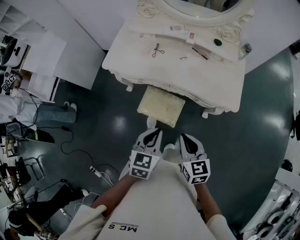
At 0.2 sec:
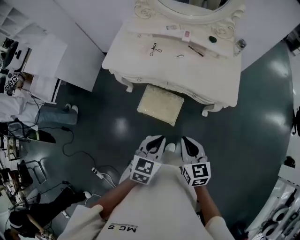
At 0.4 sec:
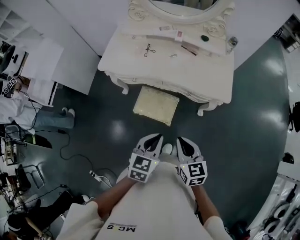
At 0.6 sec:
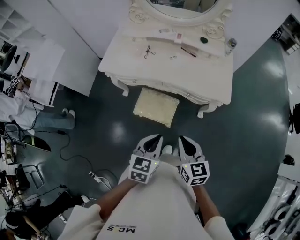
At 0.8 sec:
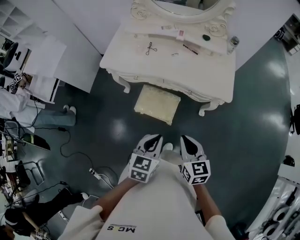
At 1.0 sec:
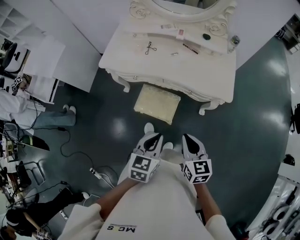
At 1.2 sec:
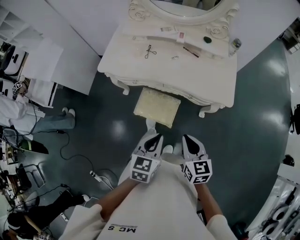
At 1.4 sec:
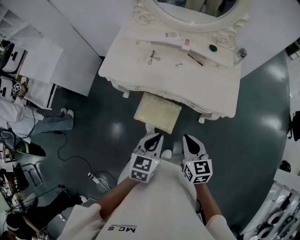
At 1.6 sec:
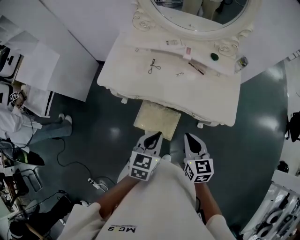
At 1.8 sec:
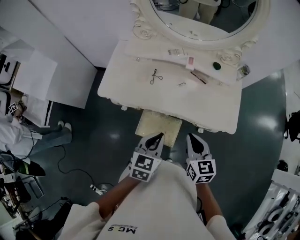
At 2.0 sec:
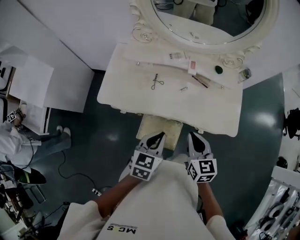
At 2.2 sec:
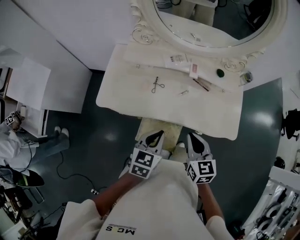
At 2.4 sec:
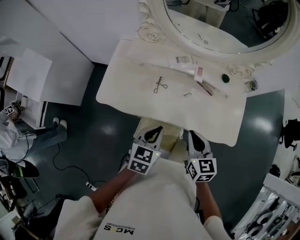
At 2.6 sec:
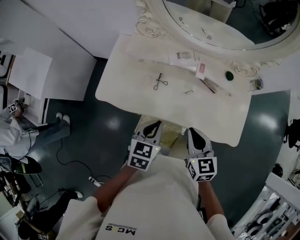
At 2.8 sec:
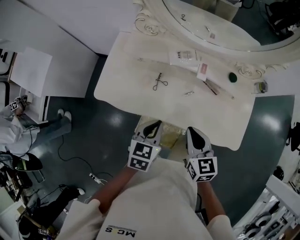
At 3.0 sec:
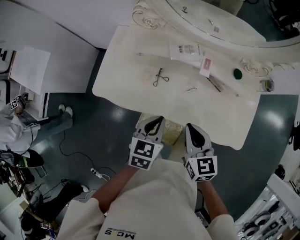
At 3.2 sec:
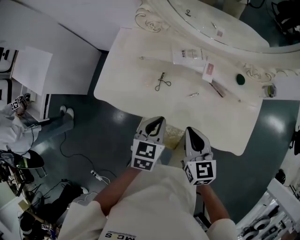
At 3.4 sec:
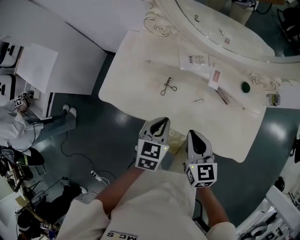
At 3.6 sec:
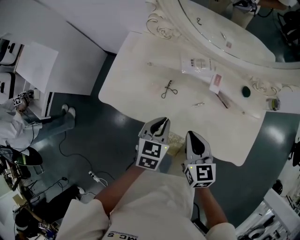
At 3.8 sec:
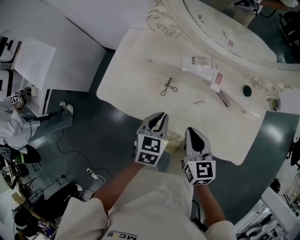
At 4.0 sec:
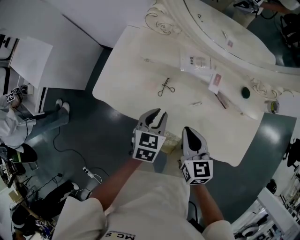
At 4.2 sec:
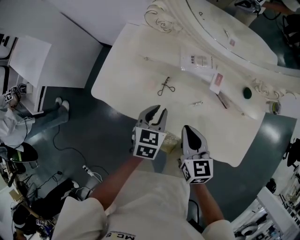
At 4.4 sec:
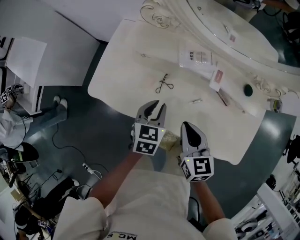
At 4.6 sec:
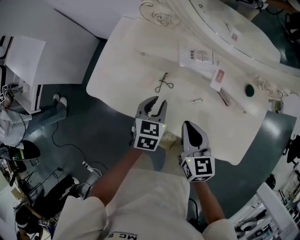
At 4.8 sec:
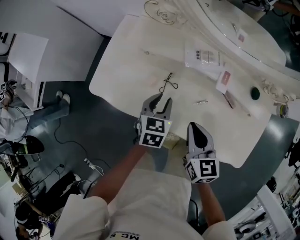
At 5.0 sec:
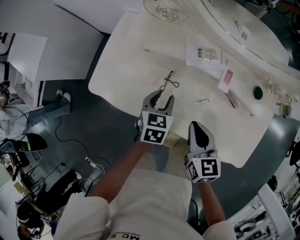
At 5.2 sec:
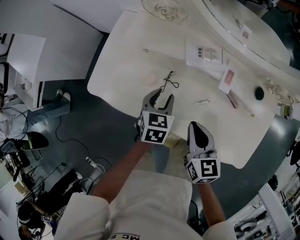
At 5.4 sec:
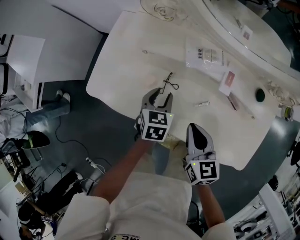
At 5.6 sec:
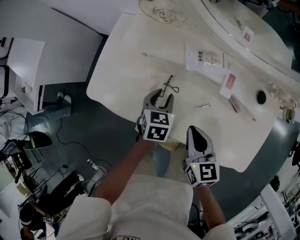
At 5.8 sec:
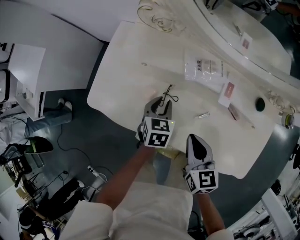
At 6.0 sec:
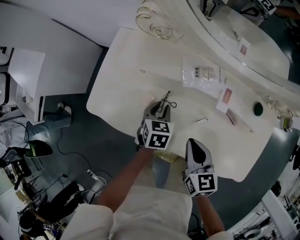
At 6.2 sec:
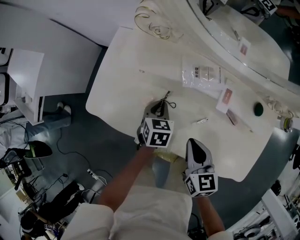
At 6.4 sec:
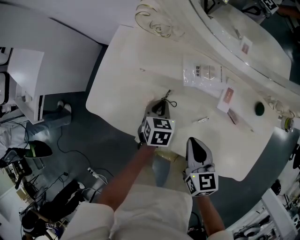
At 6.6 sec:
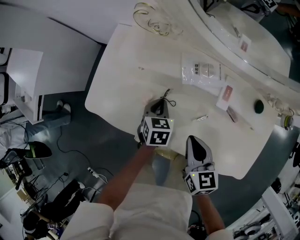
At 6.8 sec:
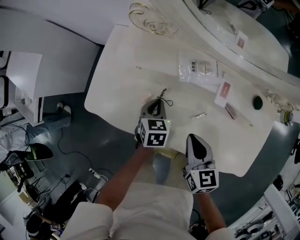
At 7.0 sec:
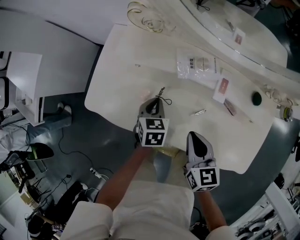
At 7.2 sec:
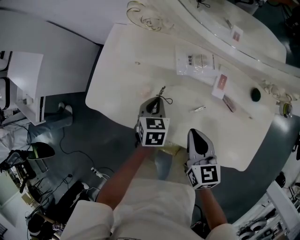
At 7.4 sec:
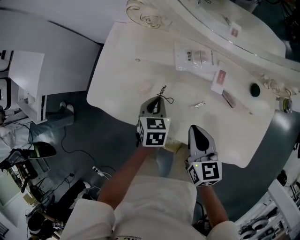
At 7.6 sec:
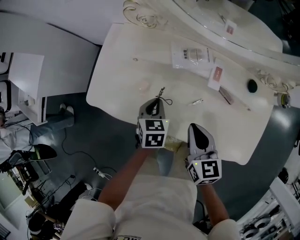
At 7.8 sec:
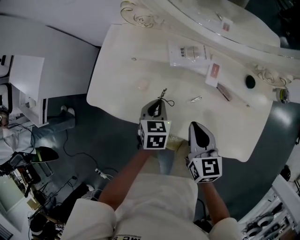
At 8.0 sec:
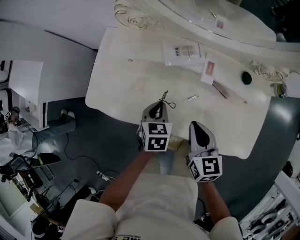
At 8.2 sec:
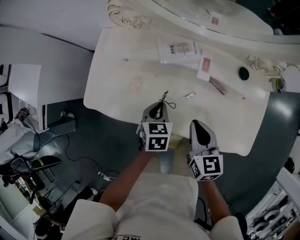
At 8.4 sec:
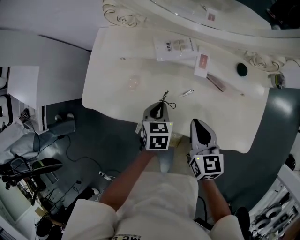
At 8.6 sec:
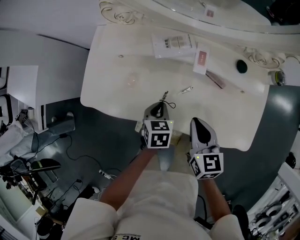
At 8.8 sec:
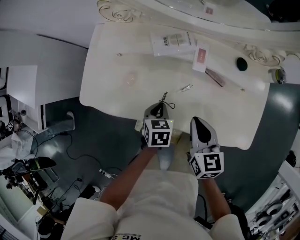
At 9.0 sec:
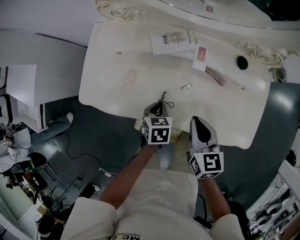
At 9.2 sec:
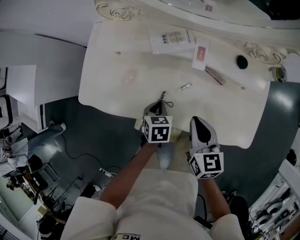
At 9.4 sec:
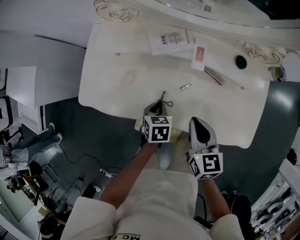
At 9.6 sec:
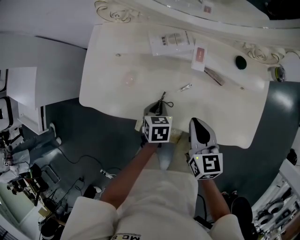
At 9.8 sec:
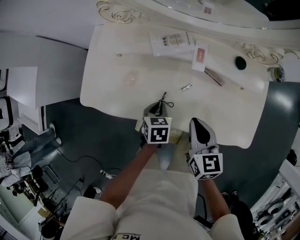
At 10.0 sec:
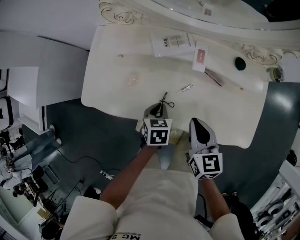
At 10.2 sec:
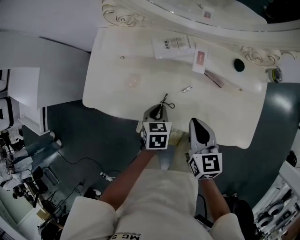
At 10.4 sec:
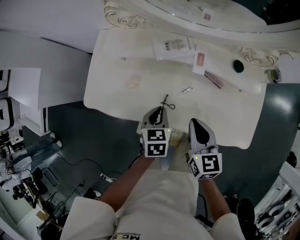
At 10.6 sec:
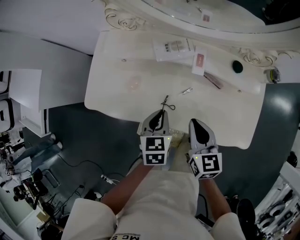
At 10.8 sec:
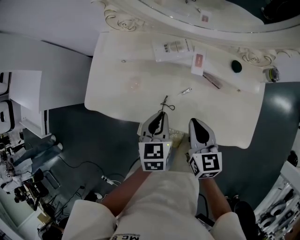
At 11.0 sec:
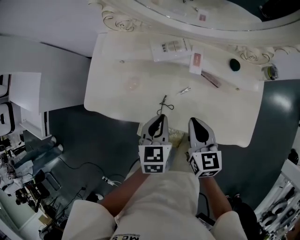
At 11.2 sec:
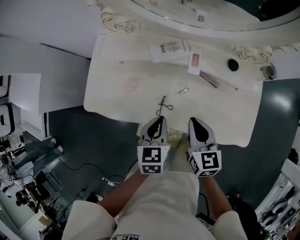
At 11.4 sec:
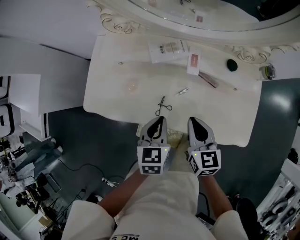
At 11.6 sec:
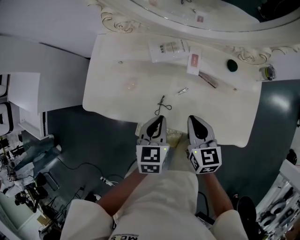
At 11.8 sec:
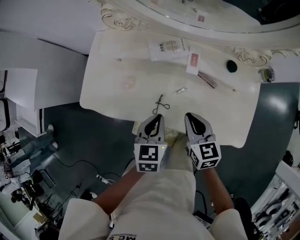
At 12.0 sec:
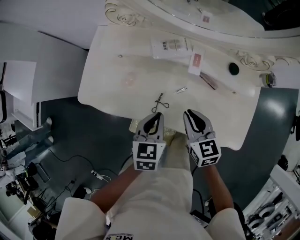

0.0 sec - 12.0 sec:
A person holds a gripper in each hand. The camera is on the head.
0.0 sec - 1.6 sec: Both grippers travel together forward, about 10 cm.
1.6 sec - 3.0 sec: Both grippers move forward, approximately 20 cm.
3.0 sec - 4.4 sec: The left gripper shifts roughly 10 cm forward and downward; the right gripper is displaced forward by some 5 cm.
4.4 sec - 6.0 sec: The right gripper moves roughly 5 cm. The left gripper travels downward and forward by roughly 10 cm.
6.0 sec - 7.6 sec: The left gripper changes place by some 5 cm.
7.6 sec - 9.0 sec: The left gripper shifts roughly 10 cm backward and to the right, while the right gripper shifts by about 5 cm.
9.0 sec - 10.4 sec: The left gripper goes some 5 cm upward.
10.4 sec - 12.0 sec: The left gripper shifts roughly 5 cm upward.

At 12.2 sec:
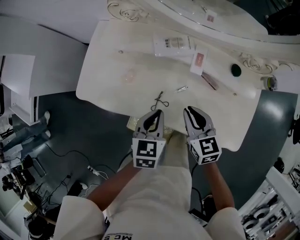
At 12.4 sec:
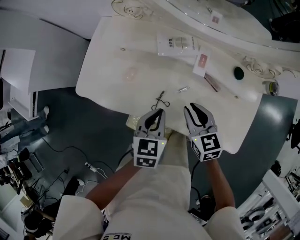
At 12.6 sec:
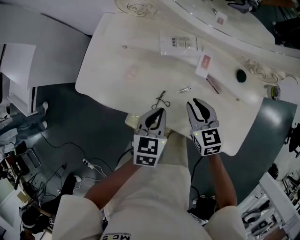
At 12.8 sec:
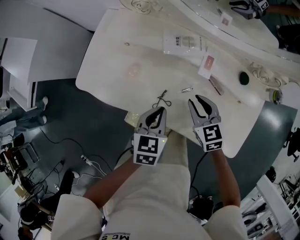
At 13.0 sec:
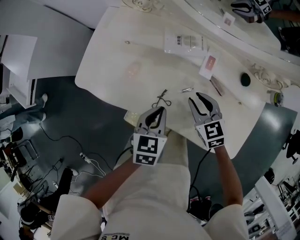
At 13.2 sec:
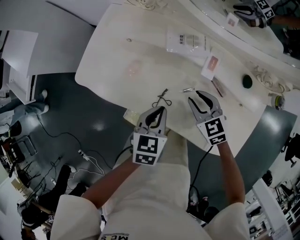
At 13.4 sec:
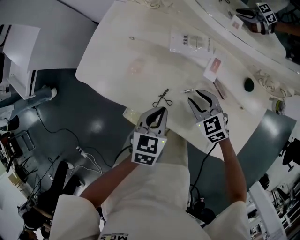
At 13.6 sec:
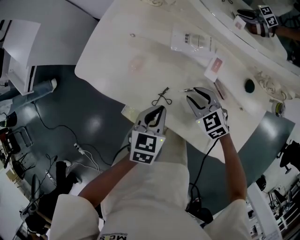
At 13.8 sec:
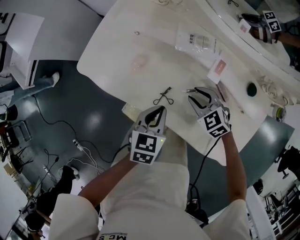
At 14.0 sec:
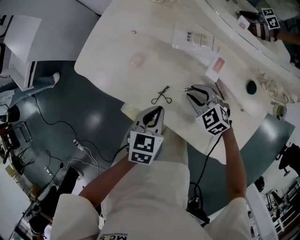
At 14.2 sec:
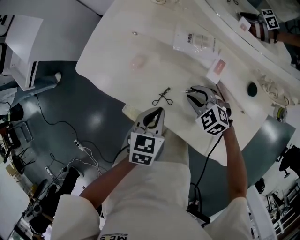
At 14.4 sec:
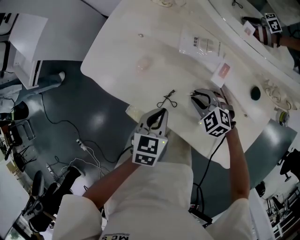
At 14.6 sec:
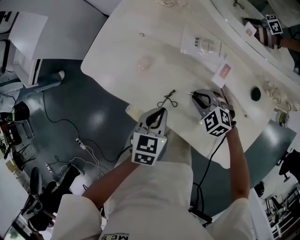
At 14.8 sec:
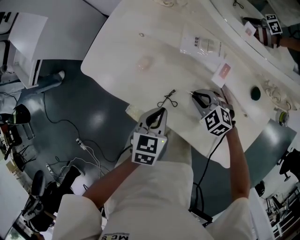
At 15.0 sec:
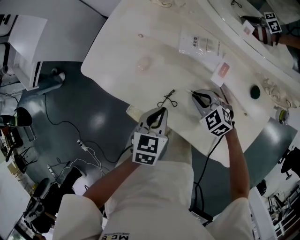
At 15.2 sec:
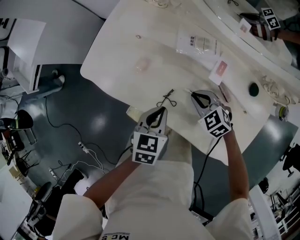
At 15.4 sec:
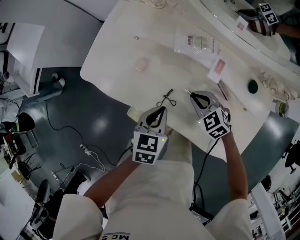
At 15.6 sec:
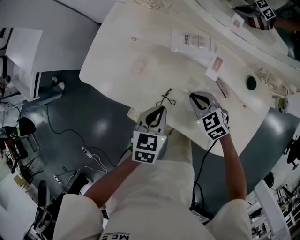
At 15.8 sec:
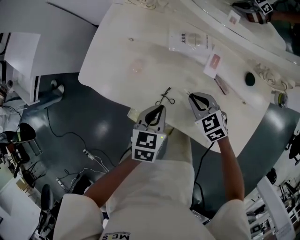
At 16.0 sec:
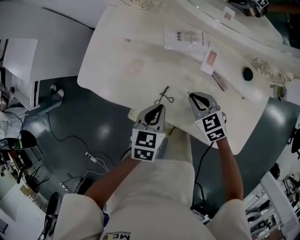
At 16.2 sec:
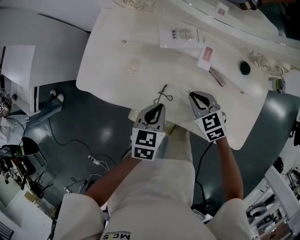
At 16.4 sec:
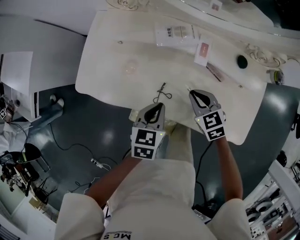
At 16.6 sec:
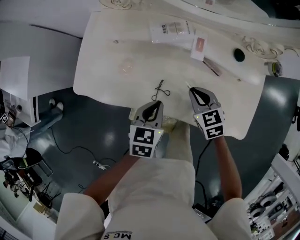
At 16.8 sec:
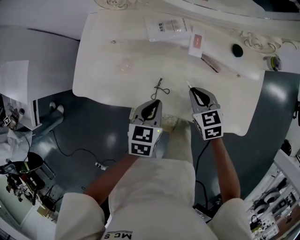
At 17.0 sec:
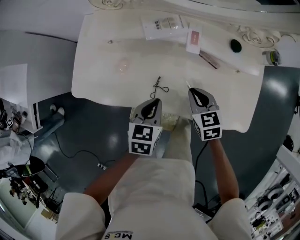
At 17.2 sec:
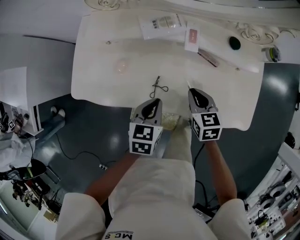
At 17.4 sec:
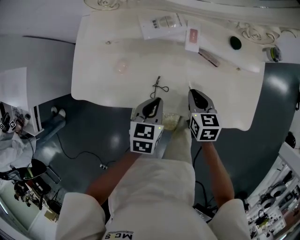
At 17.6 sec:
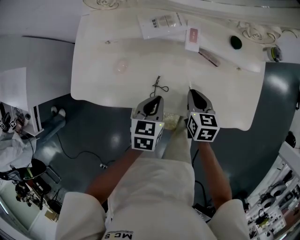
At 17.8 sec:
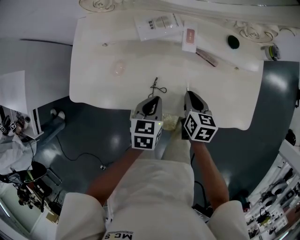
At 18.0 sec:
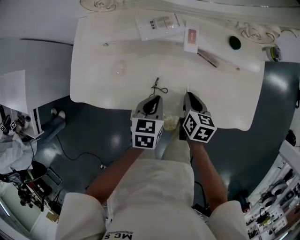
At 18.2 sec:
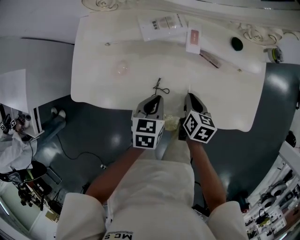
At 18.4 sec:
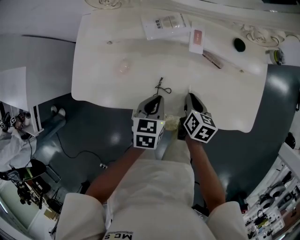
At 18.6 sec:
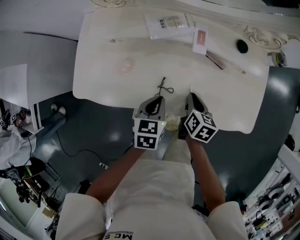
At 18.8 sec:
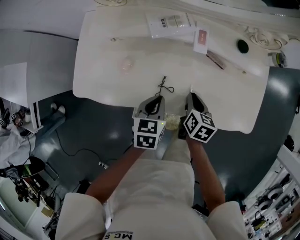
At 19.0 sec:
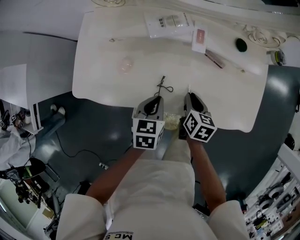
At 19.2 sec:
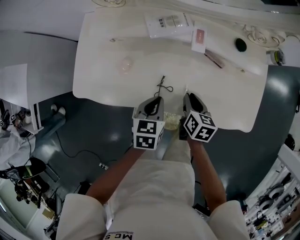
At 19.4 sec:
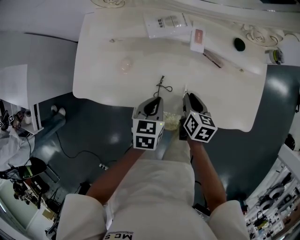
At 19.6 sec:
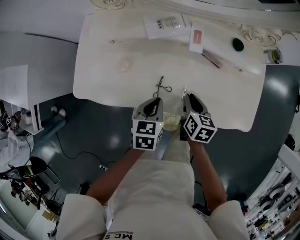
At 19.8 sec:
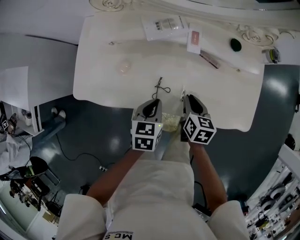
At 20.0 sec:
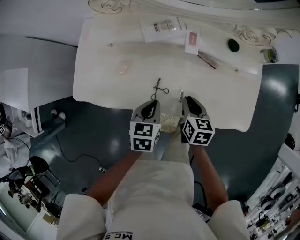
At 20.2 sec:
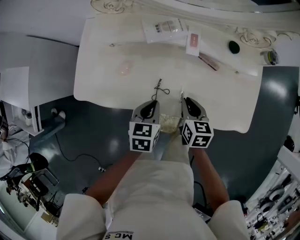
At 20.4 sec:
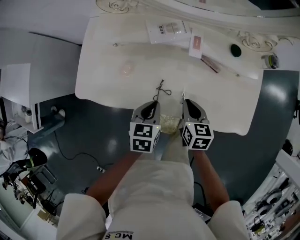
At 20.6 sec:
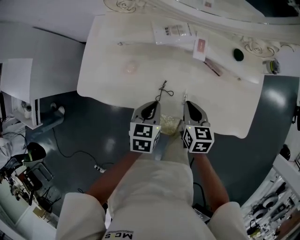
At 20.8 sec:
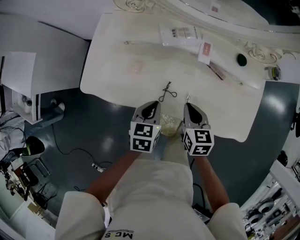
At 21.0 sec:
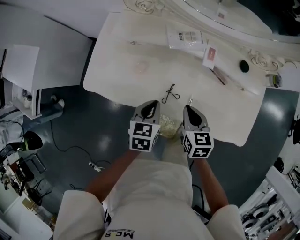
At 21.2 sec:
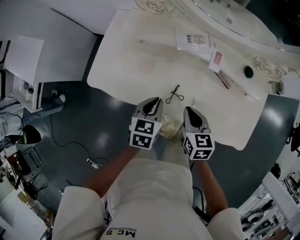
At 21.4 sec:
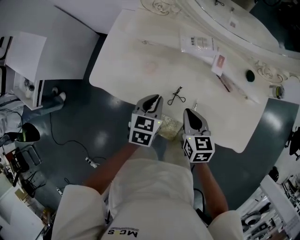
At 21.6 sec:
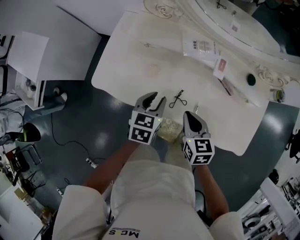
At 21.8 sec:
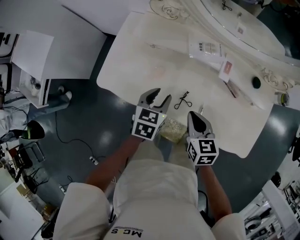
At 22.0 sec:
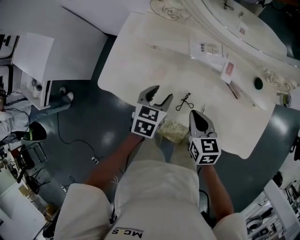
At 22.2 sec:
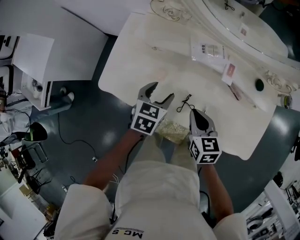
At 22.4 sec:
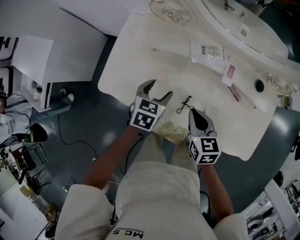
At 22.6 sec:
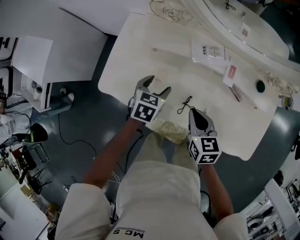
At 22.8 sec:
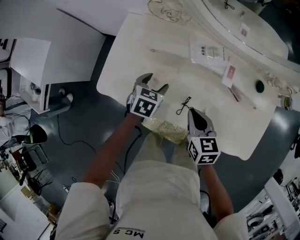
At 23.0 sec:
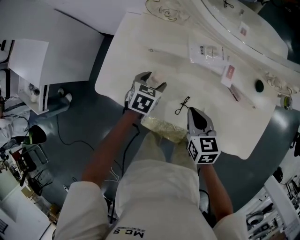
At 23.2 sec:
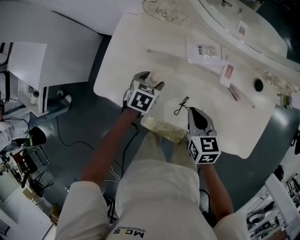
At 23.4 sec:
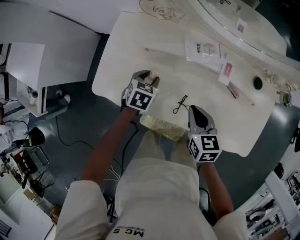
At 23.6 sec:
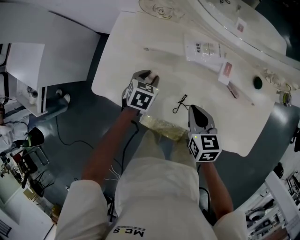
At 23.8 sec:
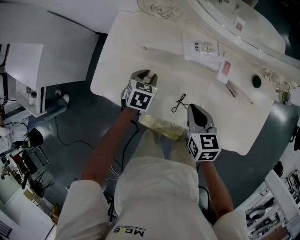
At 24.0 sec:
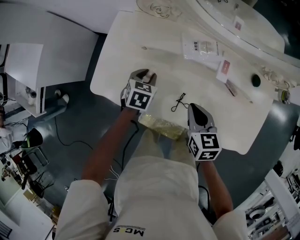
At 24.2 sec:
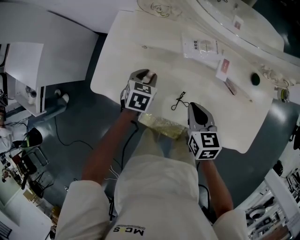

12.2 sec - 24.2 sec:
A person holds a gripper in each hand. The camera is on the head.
12.2 sec - 13.8 sec: The right gripper heads downward and forward, covering some 10 cm, swivels roughly 50 degrees, and opens up.
13.8 sec - 15.2 sec: The right gripper closes.
15.2 sec - 16.6 sec: The right gripper ends up about 5 cm from where it was, and rotates about 40 degrees.
16.6 sec - 18.2 sec: The right gripper heads downward, covering some 5 cm, and rotates around the line of its fingers by roughly 50 degrees, clockwise from behind.
18.2 sec - 19.8 sec: There are only small adjustments of the grippers.
19.8 sec - 21.2 sec: The right gripper goes approximately 10 cm to the left and upward, and changes its angle by some 30 degrees, while the left gripper moves to the left, some 5 cm.
21.2 sec - 22.6 sec: The right gripper changes place by some 5 cm. The left gripper is displaced forward and to the left by approximately 10 cm, and opens.
22.6 sec - 24.2 sec: The left gripper closes its fingers.
